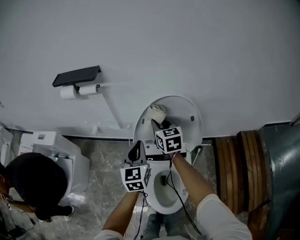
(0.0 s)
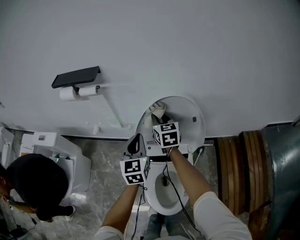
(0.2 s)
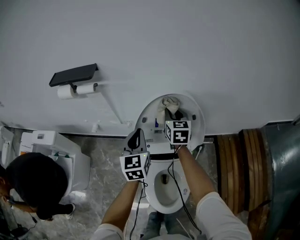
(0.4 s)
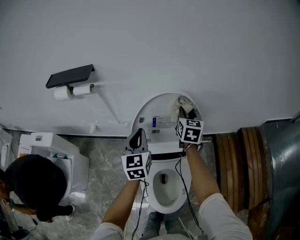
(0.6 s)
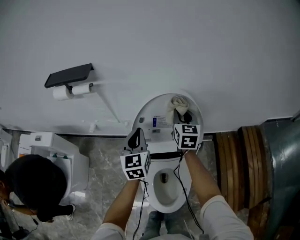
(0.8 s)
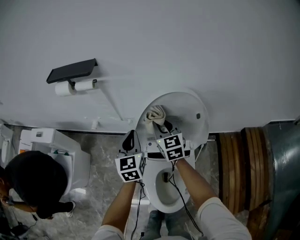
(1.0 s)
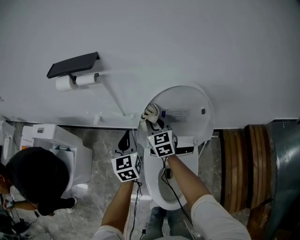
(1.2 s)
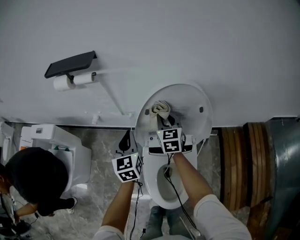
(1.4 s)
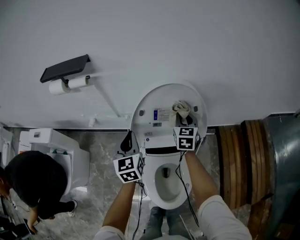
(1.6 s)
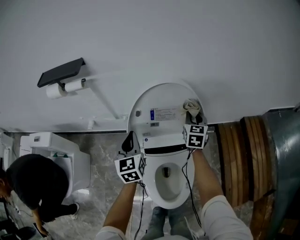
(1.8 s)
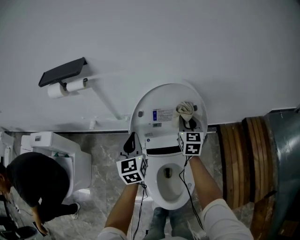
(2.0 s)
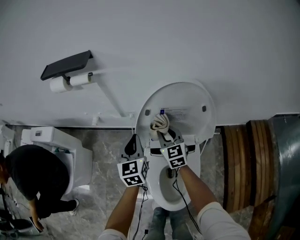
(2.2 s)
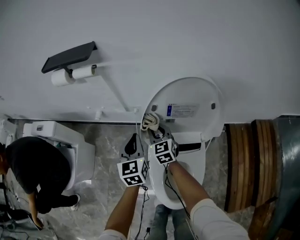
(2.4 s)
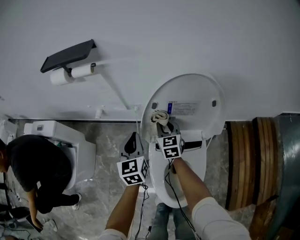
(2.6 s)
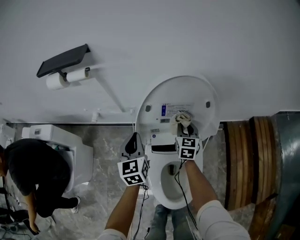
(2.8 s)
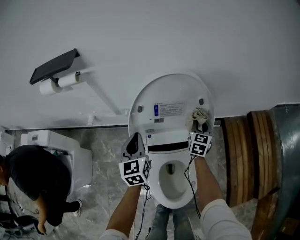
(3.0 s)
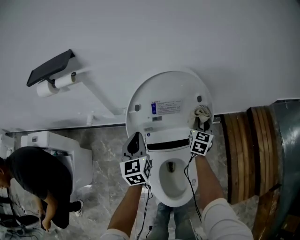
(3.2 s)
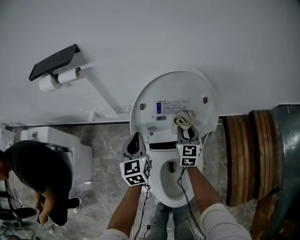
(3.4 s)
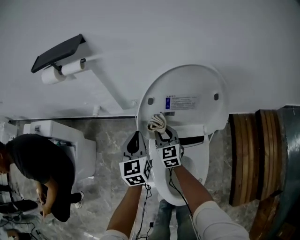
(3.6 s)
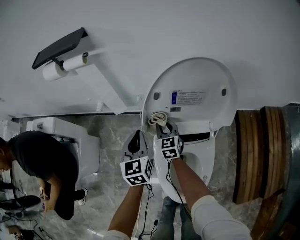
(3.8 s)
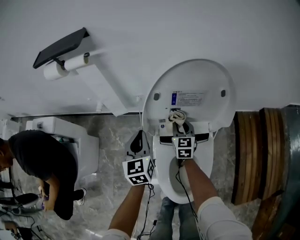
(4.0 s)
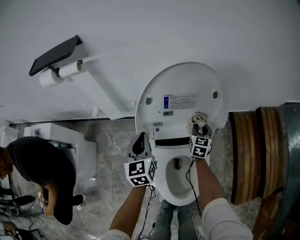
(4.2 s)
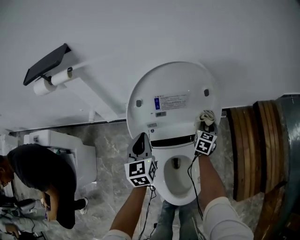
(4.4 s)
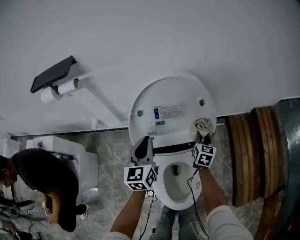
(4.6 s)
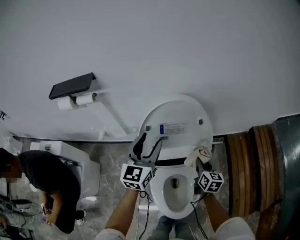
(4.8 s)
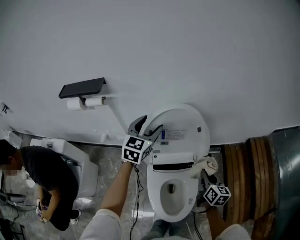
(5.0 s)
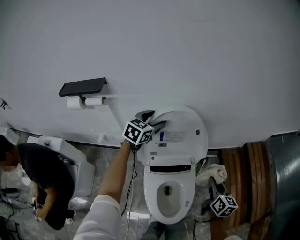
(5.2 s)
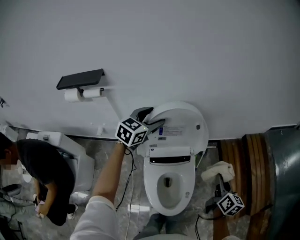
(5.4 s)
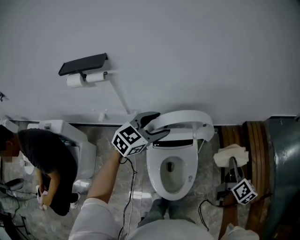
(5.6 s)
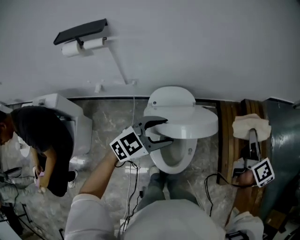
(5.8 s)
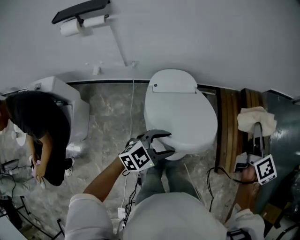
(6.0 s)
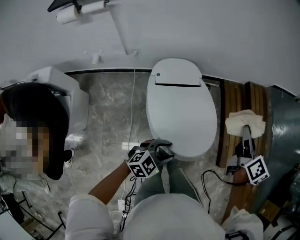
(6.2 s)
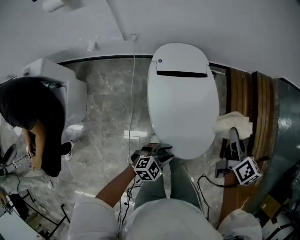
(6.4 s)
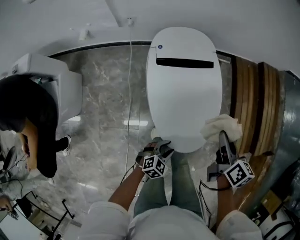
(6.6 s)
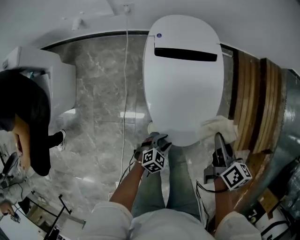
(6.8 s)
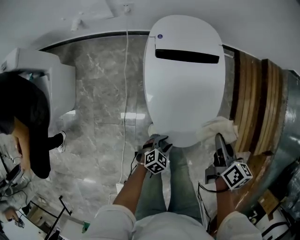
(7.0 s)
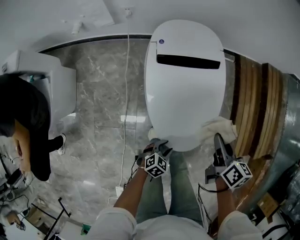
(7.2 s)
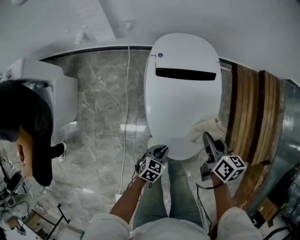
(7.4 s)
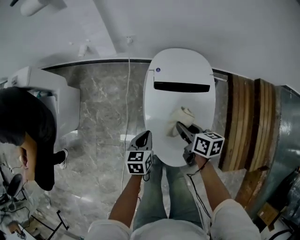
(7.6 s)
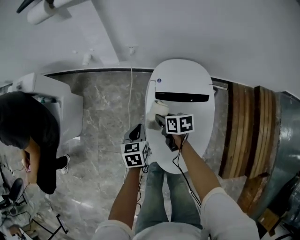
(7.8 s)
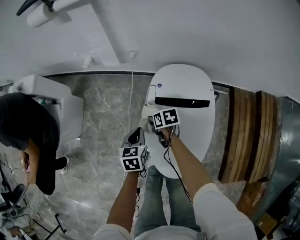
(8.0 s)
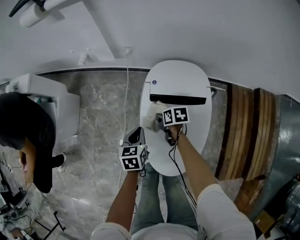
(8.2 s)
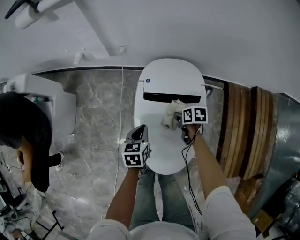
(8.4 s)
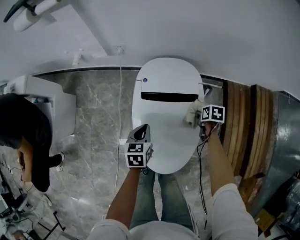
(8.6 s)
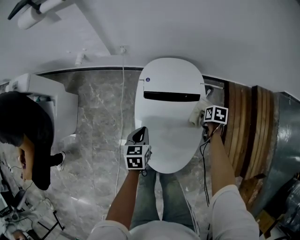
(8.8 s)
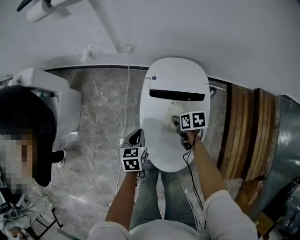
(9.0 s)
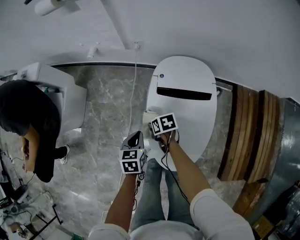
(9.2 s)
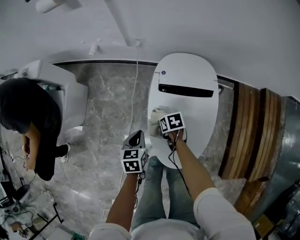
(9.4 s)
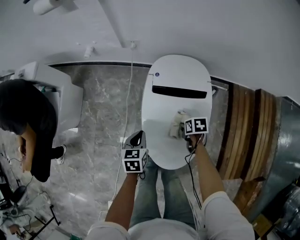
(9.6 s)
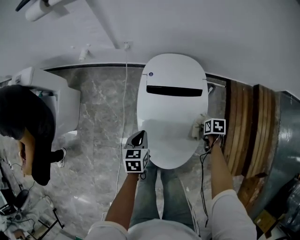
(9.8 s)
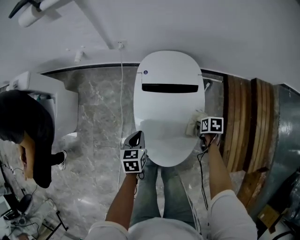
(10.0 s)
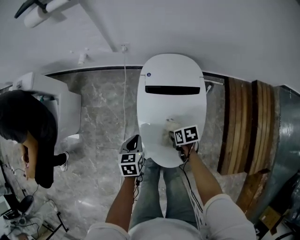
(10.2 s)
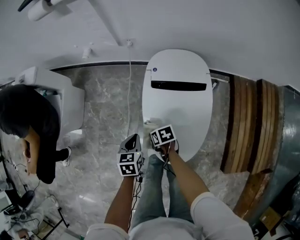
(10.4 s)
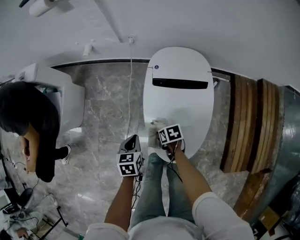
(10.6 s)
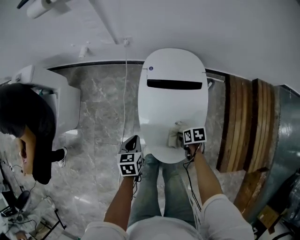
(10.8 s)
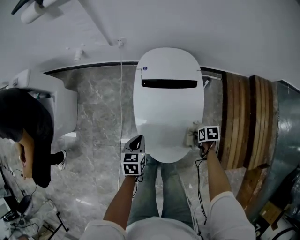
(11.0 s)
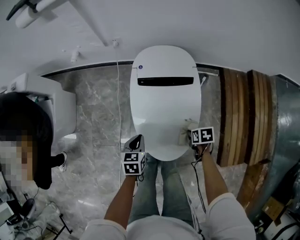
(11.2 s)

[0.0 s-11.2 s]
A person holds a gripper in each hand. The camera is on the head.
0.0 to 1.6 s: The left gripper reaches roughly 5 cm to the left, then returns. Meanwhile the right gripper swings left and right, some 20 cm each way, with 2 reversals, and swivels roughly 20 degrees.
1.6 to 3.2 s: The right gripper goes left and right, roughly 30 cm each way, reversing 2 times, while the left gripper goes roughly 5 cm downward.
3.2 to 4.8 s: The right gripper moves left and right over about 30 cm, changing direction 2 times, and rotates roughly 30 degrees. Meanwhile the left gripper is displaced upward by approximately 15 cm, changes its angle by about 20 degrees, and opens.
4.8 to 6.4 s: The left gripper ends up about 50 cm from where it was, and tips its fingers downward by approximately 30 degrees. The right gripper goes upward and returns, some 30 cm each way.
6.4 to 8.0 s: The right gripper moves approximately 50 cm, and rotates approximately 60 degrees. The left gripper moves roughly 20 cm downward and comes back, turns by approximately 70 degrees, and closes its fingers.
8.0 to 9.6 s: The left gripper shifts by some 10 cm.
9.6 to 11.2 s: The right gripper shifts by roughly 15 cm, while the left gripper shifts by roughly 5 cm.

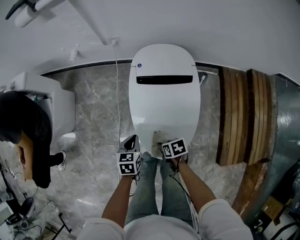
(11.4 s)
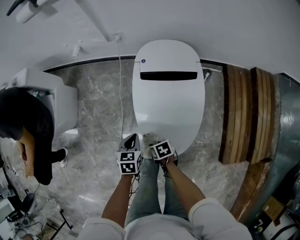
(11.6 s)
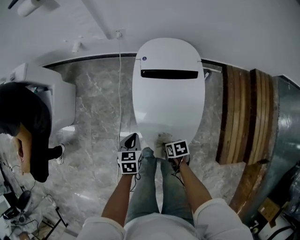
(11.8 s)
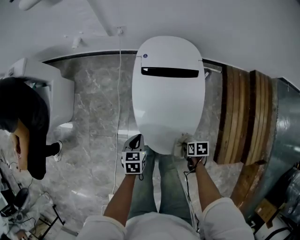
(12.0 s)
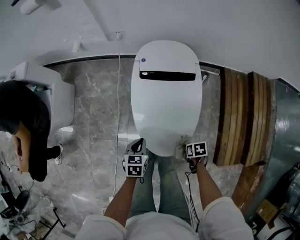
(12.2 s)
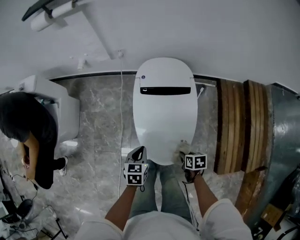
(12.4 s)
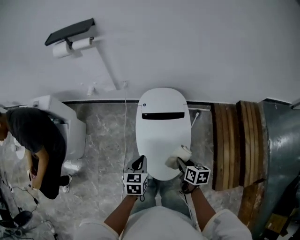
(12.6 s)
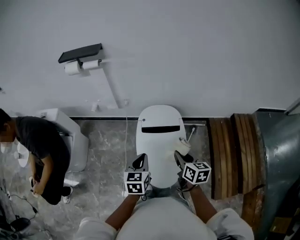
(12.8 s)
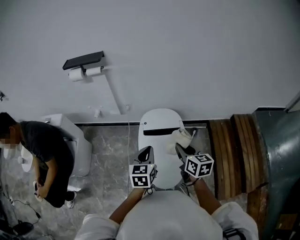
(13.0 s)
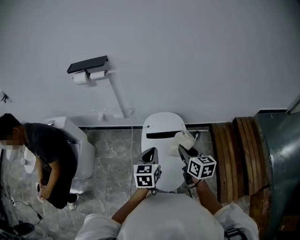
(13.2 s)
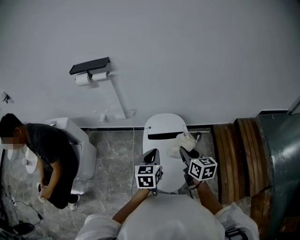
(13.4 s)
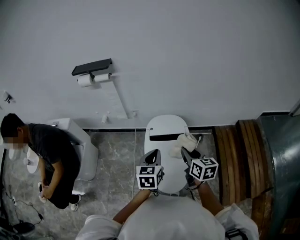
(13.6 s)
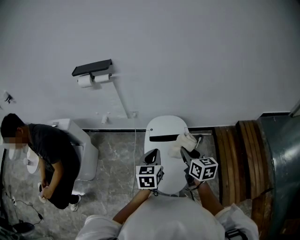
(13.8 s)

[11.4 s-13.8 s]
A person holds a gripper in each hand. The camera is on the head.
11.4 to 12.6 s: The grippers both shift upward by about 20 cm. The right gripper swivels about 30 degrees.
12.6 to 13.8 s: Both grippers travel together upward, about 20 cm. The right gripper swivels about 30 degrees.

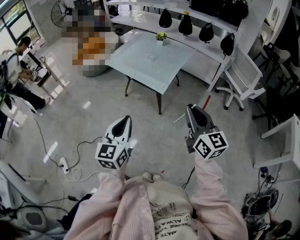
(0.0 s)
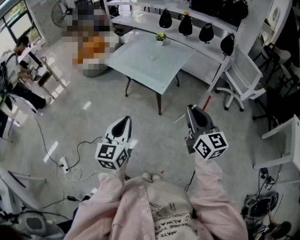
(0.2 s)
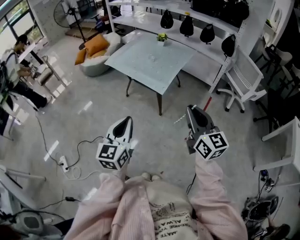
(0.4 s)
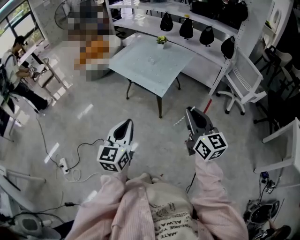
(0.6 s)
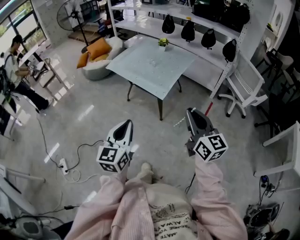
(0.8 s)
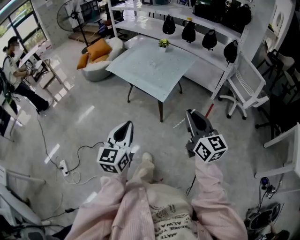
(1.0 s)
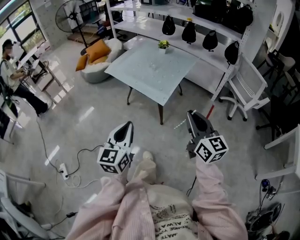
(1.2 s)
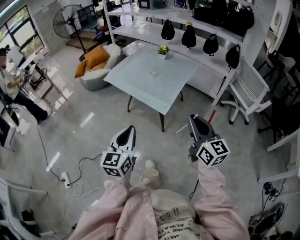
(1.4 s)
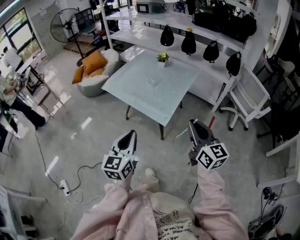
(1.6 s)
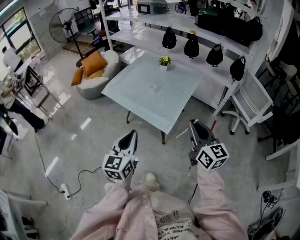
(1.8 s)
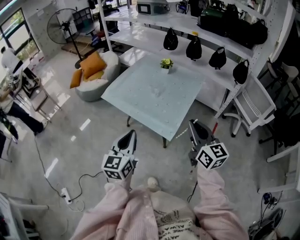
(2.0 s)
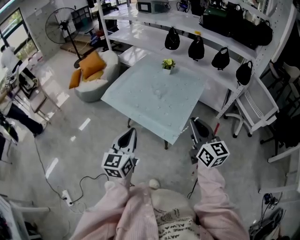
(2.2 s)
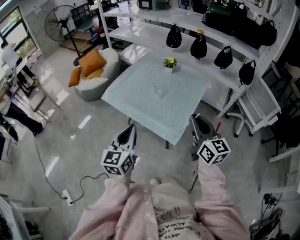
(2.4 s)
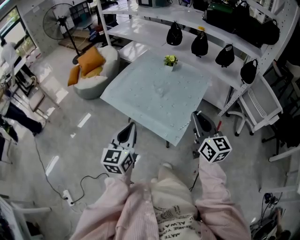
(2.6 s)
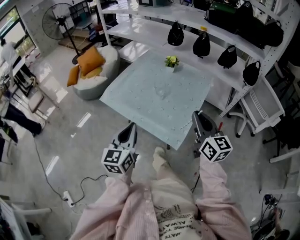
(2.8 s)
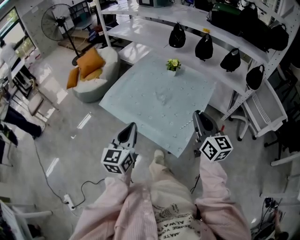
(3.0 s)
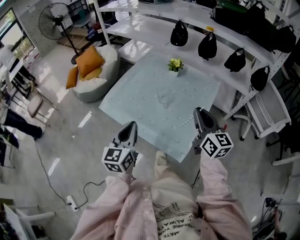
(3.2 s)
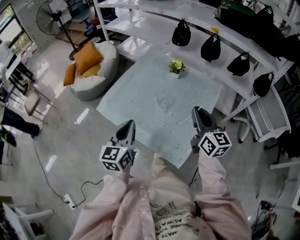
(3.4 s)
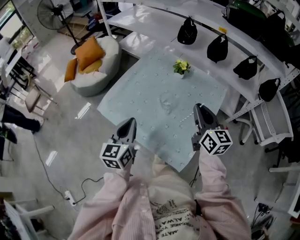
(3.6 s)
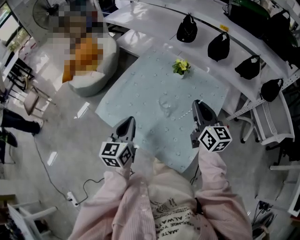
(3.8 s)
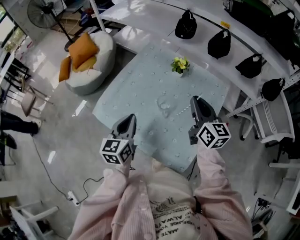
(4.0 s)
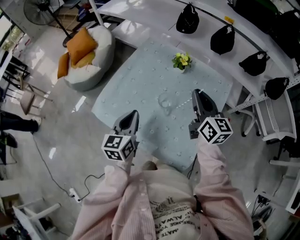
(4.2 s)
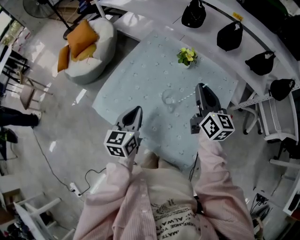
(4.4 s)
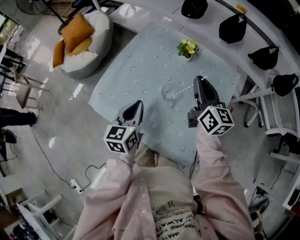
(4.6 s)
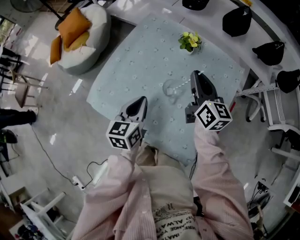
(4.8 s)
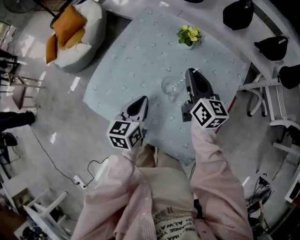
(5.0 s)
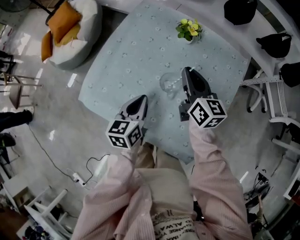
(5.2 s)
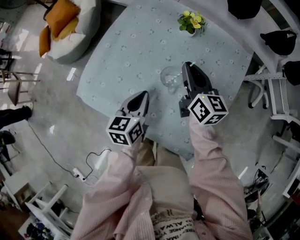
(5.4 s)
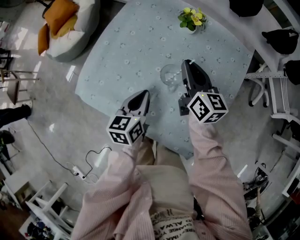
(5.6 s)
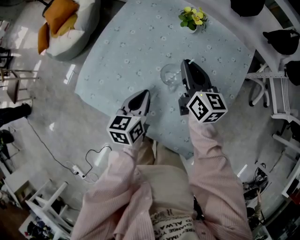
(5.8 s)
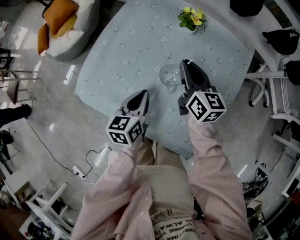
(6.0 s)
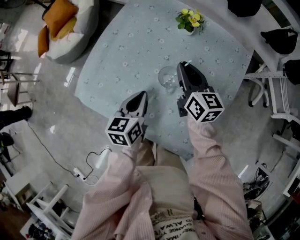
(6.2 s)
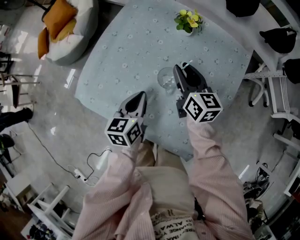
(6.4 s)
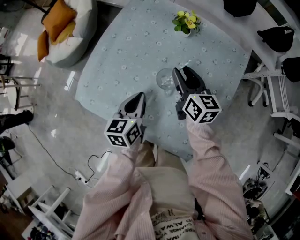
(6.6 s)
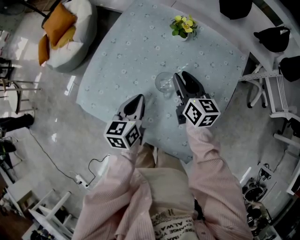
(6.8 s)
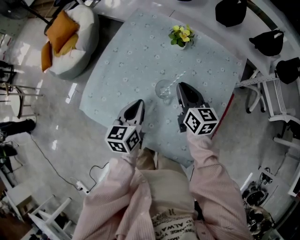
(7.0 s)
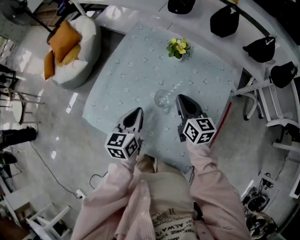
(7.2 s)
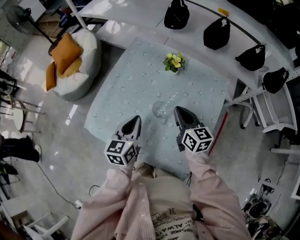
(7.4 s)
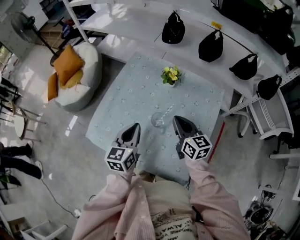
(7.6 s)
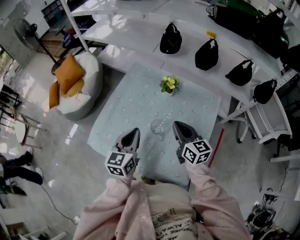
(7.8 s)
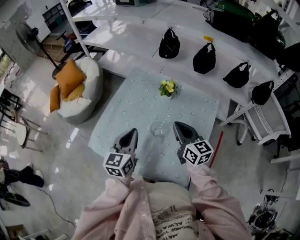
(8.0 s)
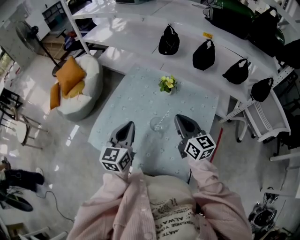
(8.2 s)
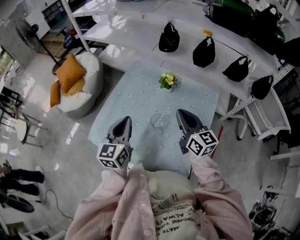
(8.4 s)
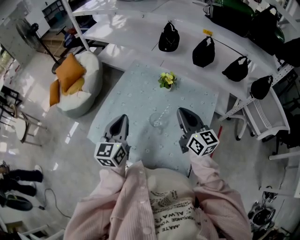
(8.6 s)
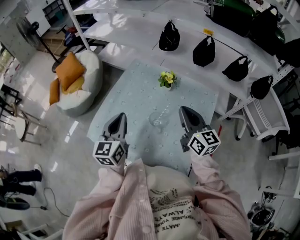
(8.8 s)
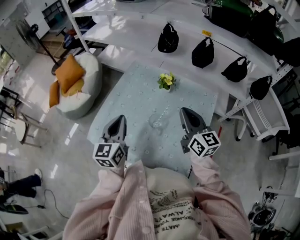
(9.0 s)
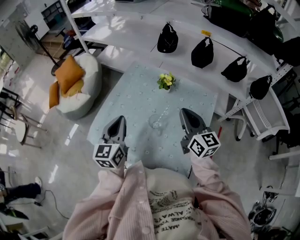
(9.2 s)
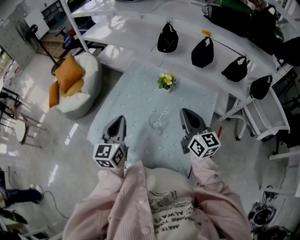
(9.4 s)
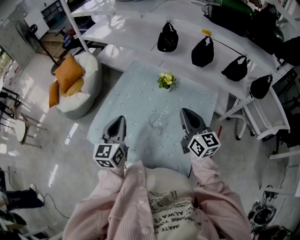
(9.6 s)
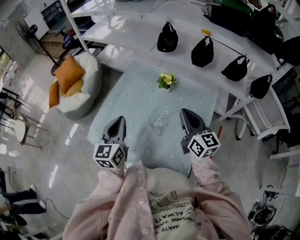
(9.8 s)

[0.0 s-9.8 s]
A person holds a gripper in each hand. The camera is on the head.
0.0 to 1.4 s: Both grippers travel together forward, roughly 10 cm.
1.4 to 2.8 s: The two grippers go some 30 cm forward.
2.8 to 4.2 s: Both grippers move forward, about 30 cm.
4.2 to 5.6 s: The right gripper moves downward and to the left, roughly 15 cm. The left gripper heads downward, covering approximately 15 cm.
5.6 to 7.0 s: The right gripper opens, then closes once more.
7.0 to 8.4 s: Both grippers move upward, roughly 15 cm. The left gripper rotates approximately 20 degrees.
8.4 to 9.8 s: The grippers make only small movements.
